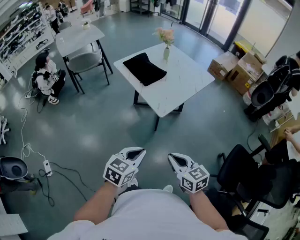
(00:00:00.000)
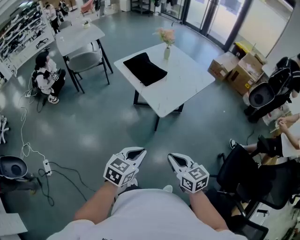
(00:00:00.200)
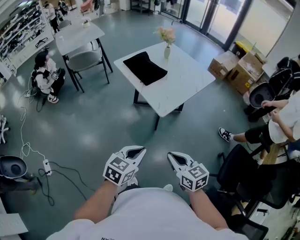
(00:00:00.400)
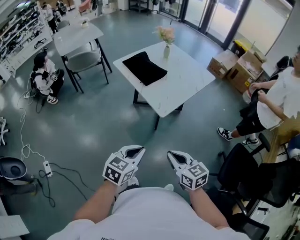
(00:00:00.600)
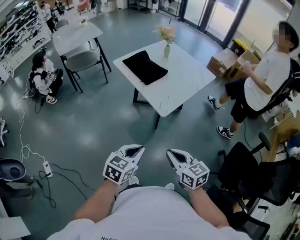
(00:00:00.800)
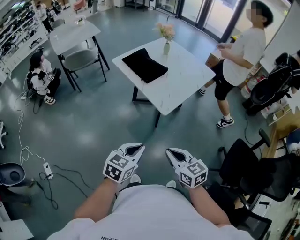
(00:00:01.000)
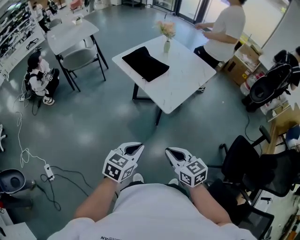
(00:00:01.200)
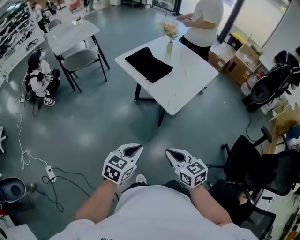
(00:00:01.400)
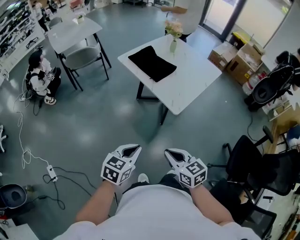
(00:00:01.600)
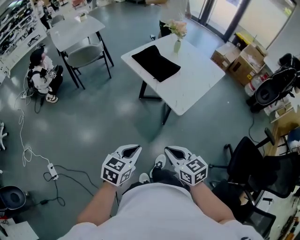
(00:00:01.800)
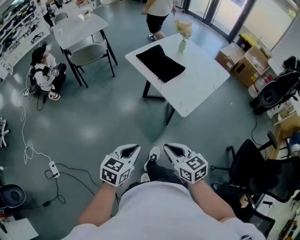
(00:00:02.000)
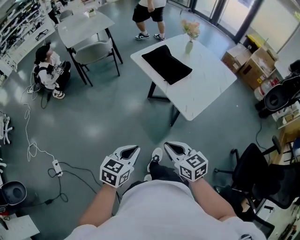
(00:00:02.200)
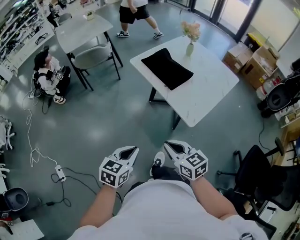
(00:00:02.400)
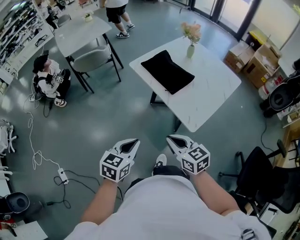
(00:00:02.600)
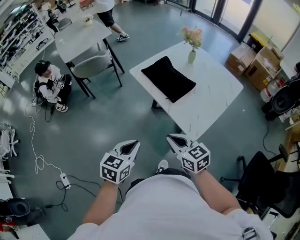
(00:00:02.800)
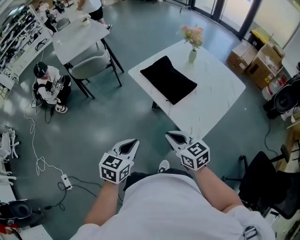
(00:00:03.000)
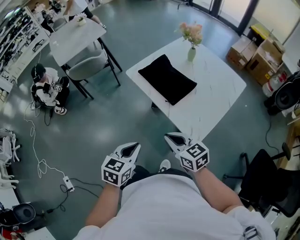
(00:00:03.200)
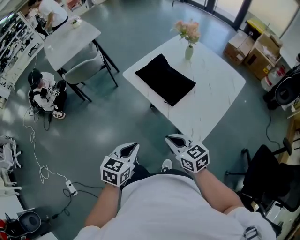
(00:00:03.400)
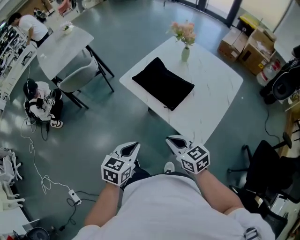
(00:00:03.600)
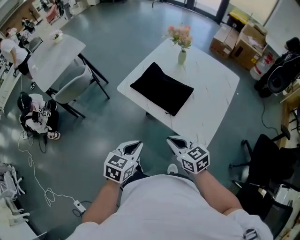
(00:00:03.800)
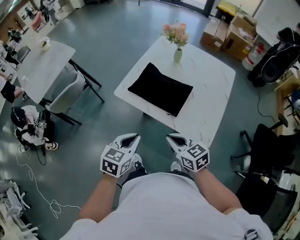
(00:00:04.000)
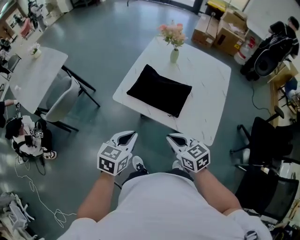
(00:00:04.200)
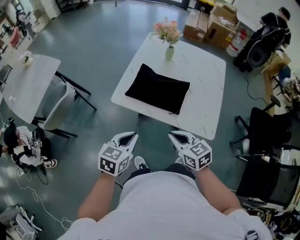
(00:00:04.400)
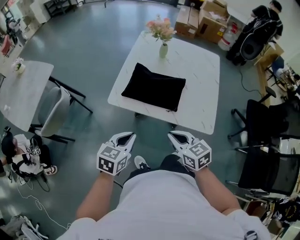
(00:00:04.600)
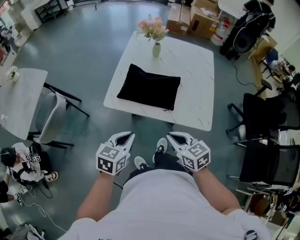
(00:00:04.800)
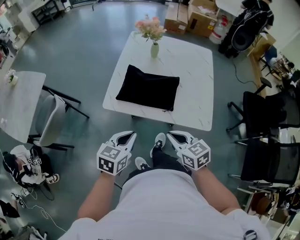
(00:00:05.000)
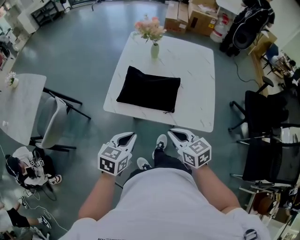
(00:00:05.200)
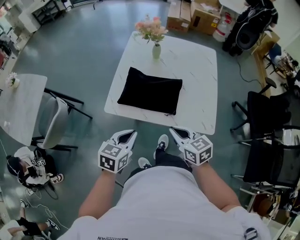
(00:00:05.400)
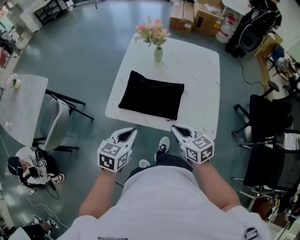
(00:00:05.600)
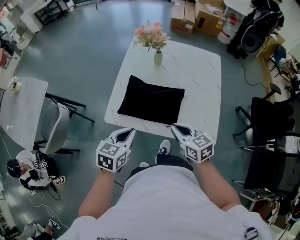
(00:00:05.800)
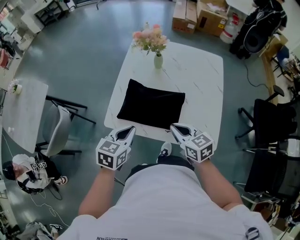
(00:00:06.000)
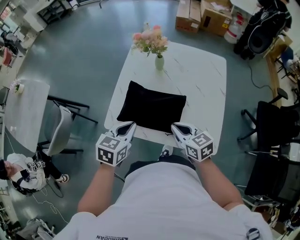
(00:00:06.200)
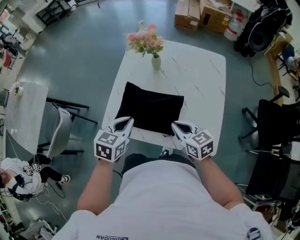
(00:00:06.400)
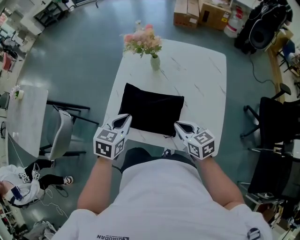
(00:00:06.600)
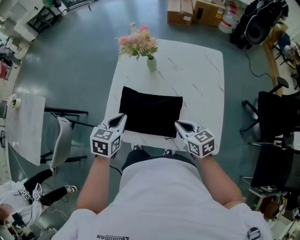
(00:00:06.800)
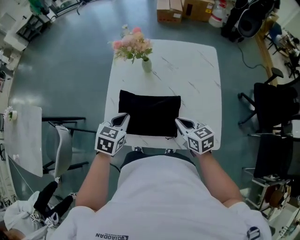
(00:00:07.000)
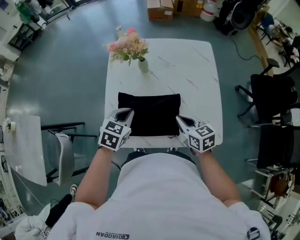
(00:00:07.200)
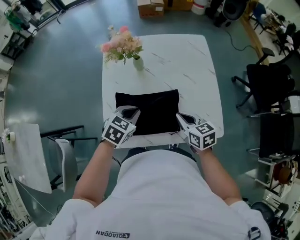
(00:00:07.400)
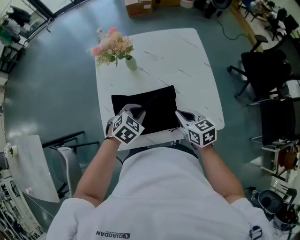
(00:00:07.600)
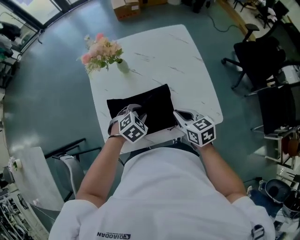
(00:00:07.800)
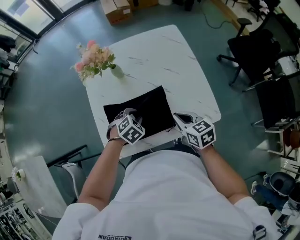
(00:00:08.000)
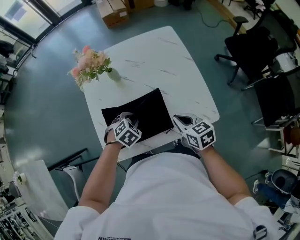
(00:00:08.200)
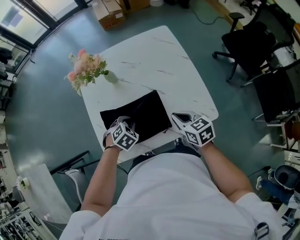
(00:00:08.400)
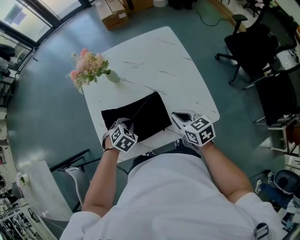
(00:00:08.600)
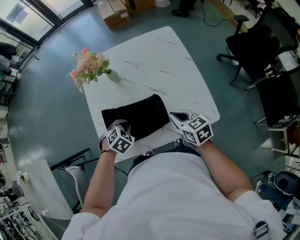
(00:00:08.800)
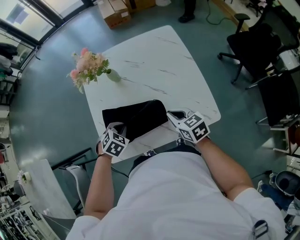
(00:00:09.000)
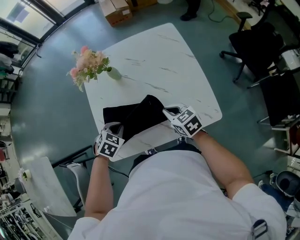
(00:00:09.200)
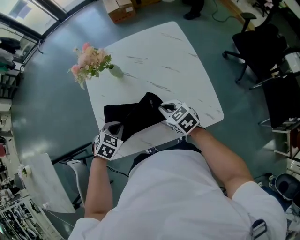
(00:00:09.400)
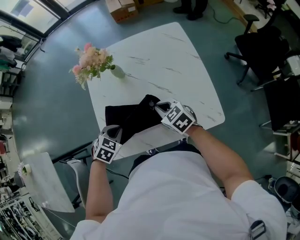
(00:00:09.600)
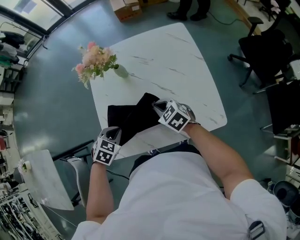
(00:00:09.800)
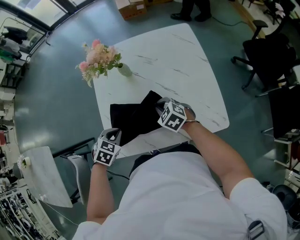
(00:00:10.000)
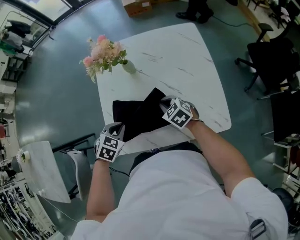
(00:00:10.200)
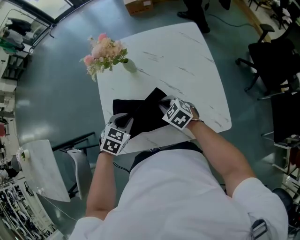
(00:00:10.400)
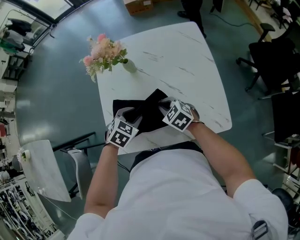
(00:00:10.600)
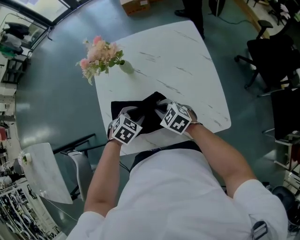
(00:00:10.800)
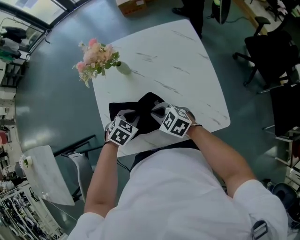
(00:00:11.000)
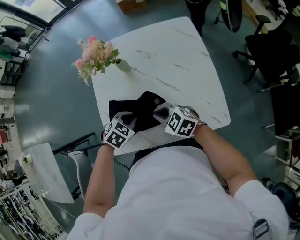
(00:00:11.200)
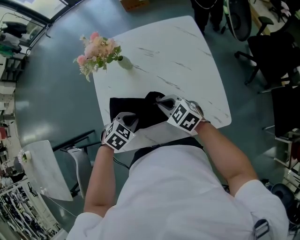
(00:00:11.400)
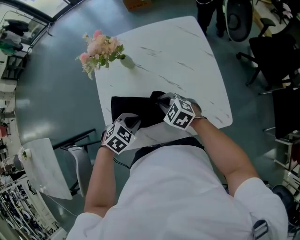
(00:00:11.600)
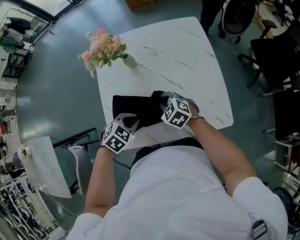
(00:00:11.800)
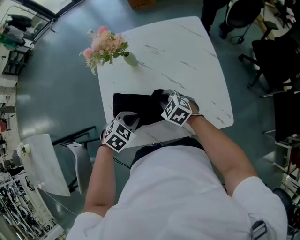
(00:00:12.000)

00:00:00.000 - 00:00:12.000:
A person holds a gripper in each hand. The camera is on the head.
00:00:00.000 - 00:00:01.600: Both grippers travel together to the left, roughly 15 cm.
00:00:01.600 - 00:00:03.000: Both grippers move forward, approximately 25 cm.
00:00:03.000 - 00:00:04.400: The left gripper shifts by roughly 25 cm, and rotates about 30 degrees; the right gripper ends up some 20 cm from where it was, and rotates approximately 30 degrees.
00:00:04.400 - 00:00:06.000: The two grippers go about 15 cm forward.
00:00:06.000 - 00:00:07.600: The right gripper moves roughly 10 cm, and changes its angle by approximately 30 degrees; the left gripper moves approximately 15 cm, and rolls clockwise, seen from behind, by approximately 40 degrees.
00:00:07.600 - 00:00:09.000: The left gripper shifts by some 5 cm, and opens and closes again.
00:00:09.000 - 00:00:10.400: The right gripper moves to the left and forward, some 10 cm, and swivels about 30 degrees.
00:00:10.400 - 00:00:12.000: The left gripper opens and closes again.

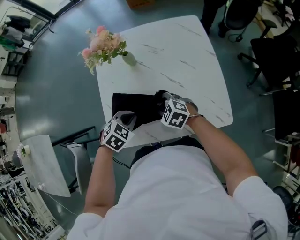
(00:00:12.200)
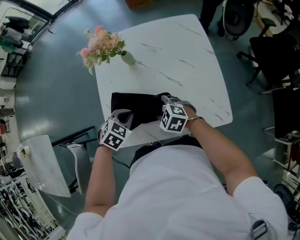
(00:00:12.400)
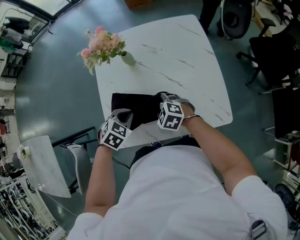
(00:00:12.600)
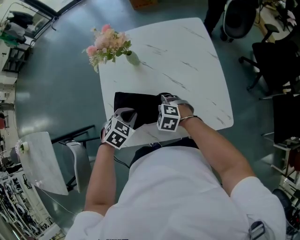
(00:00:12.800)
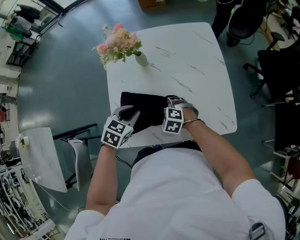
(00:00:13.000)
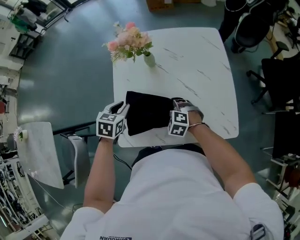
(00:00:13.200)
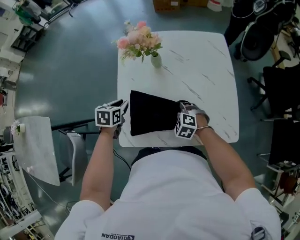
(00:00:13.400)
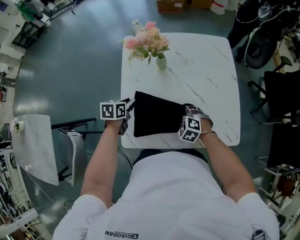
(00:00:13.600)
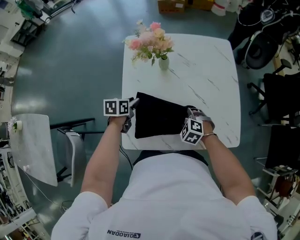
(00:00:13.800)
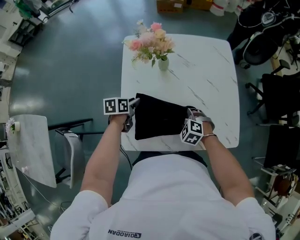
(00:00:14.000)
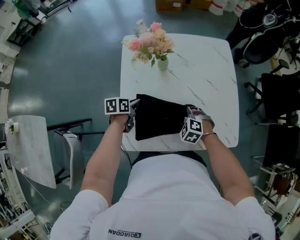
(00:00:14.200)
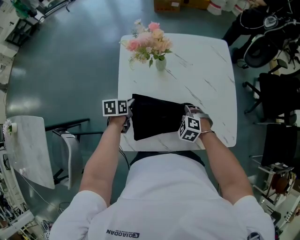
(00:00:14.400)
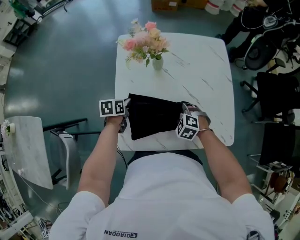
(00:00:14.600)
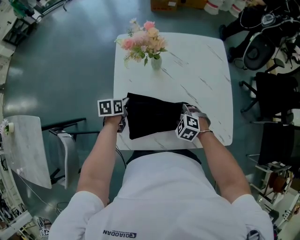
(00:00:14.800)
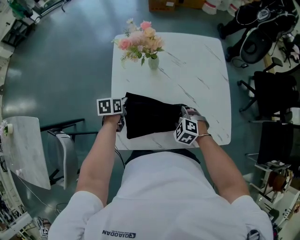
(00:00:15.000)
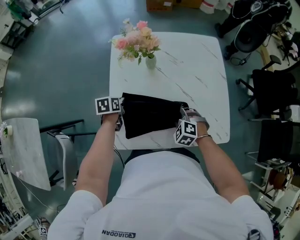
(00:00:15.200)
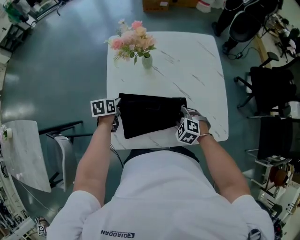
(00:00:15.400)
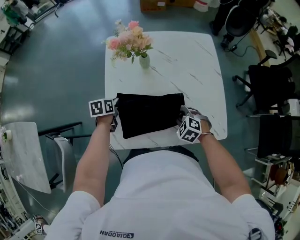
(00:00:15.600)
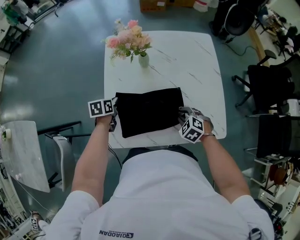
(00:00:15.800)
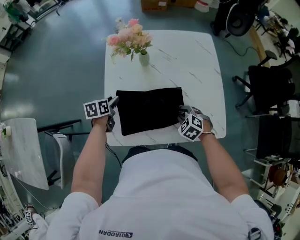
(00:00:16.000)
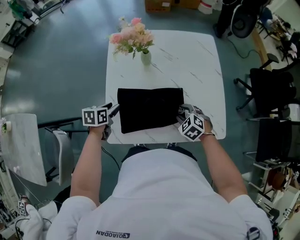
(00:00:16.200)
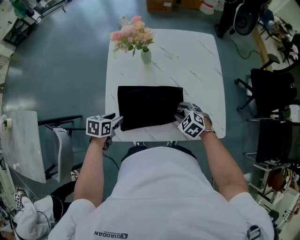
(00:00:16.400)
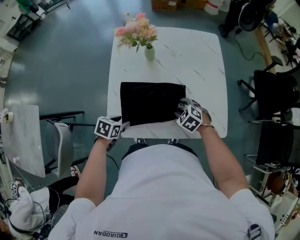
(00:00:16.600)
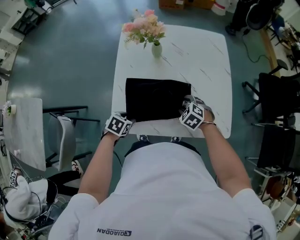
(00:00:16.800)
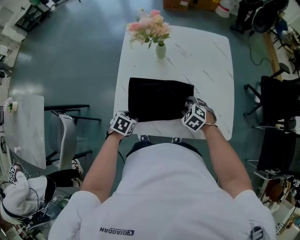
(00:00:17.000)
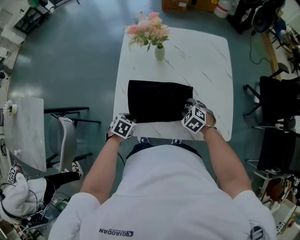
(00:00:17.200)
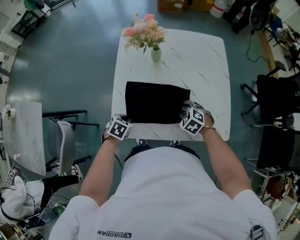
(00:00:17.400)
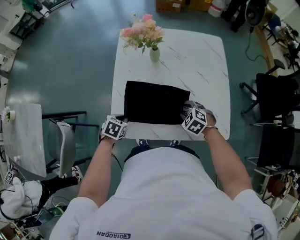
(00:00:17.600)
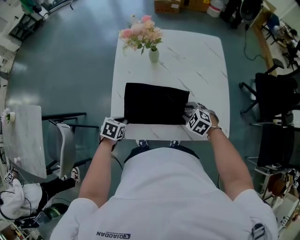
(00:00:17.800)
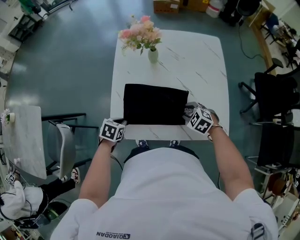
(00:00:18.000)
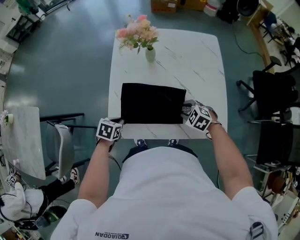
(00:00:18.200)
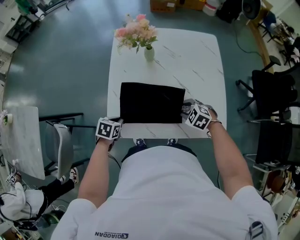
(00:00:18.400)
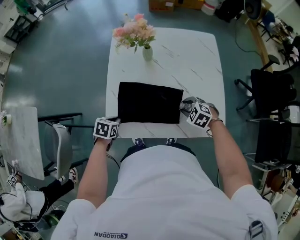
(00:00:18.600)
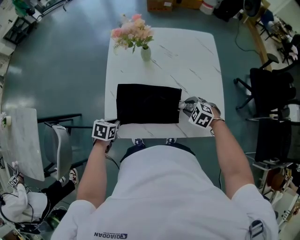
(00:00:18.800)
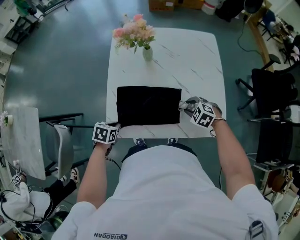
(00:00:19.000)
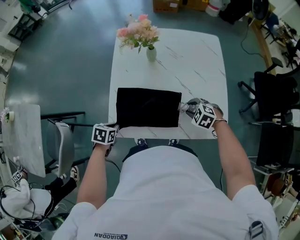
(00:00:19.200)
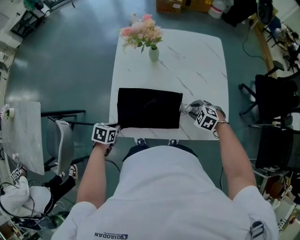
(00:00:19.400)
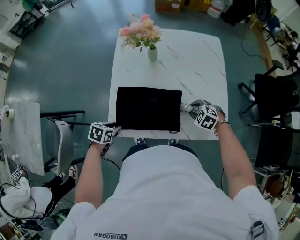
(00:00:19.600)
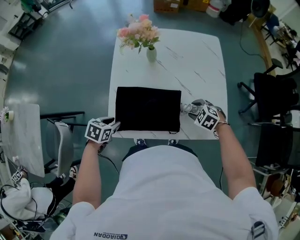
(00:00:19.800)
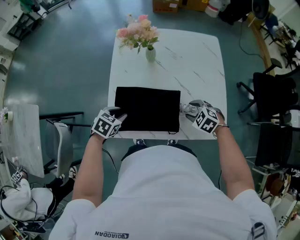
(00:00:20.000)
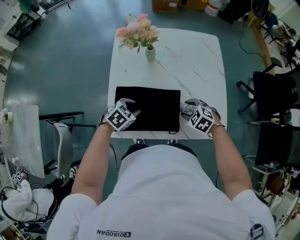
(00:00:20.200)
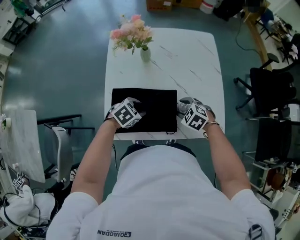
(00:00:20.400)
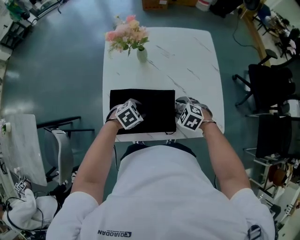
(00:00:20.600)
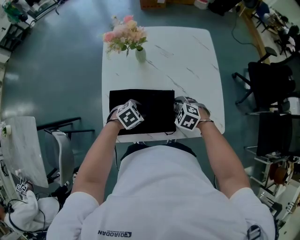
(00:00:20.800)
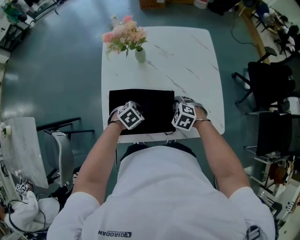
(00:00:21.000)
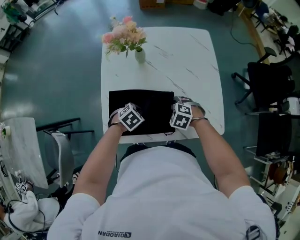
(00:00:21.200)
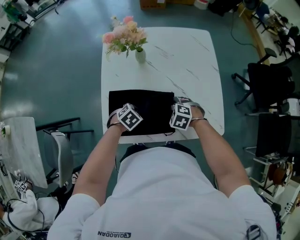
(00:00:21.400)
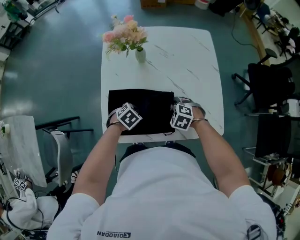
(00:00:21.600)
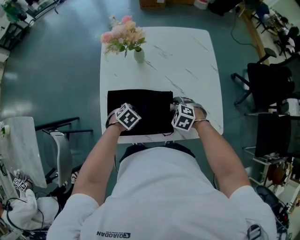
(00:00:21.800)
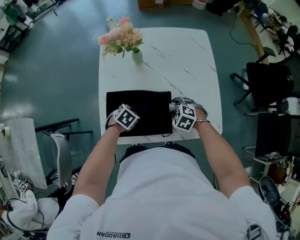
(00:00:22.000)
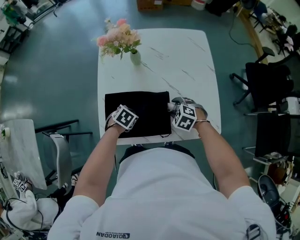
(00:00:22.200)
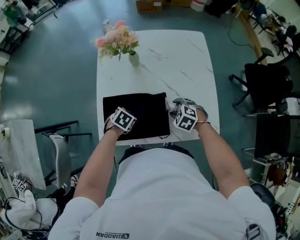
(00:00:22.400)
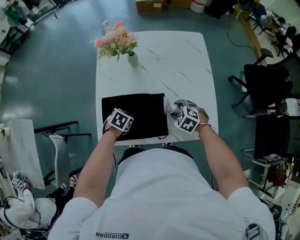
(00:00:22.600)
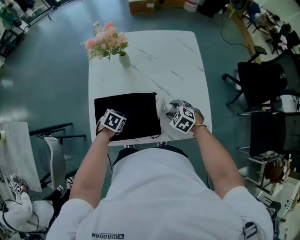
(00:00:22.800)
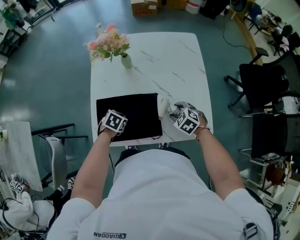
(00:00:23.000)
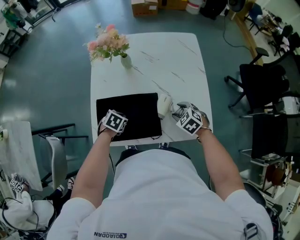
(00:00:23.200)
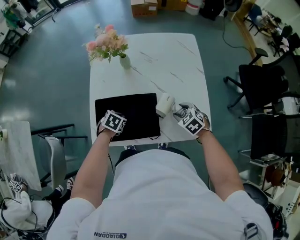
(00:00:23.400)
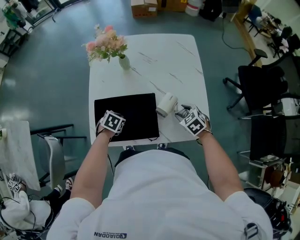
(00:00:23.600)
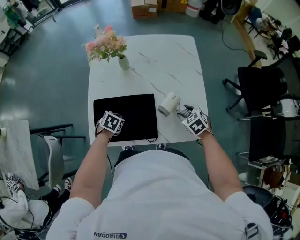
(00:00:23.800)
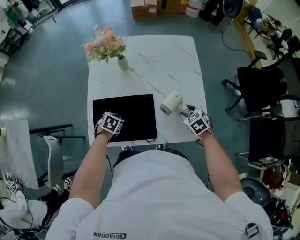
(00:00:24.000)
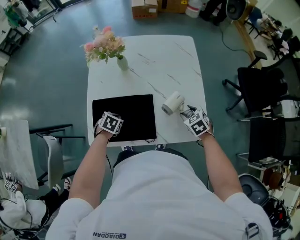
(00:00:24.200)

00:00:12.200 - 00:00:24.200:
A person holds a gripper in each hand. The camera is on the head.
00:00:12.200 - 00:00:13.800: The right gripper changes its angle by approximately 20 degrees, while the left gripper moves forward, to the left and downward, approximately 20 cm, rolls counterclockwise, seen from behind, by roughly 60 degrees, and opens its fingers.
00:00:13.800 - 00:00:15.200: The left gripper closes its fingers.
00:00:15.200 - 00:00:16.600: The right gripper opens its fingers; the left gripper goes some 20 cm backward, swivels some 20 degrees, and opens its fingers.
00:00:16.600 - 00:00:18.200: The left gripper closes its fingers.
00:00:18.200 - 00:00:19.800: The left gripper opens up, while the right gripper is displaced to the right by some 5 cm.
00:00:19.800 - 00:00:21.200: The left gripper changes place by approximately 15 cm, changes its angle by about 30 degrees, and closes up, while the right gripper shifts by approximately 10 cm.
00:00:21.200 - 00:00:22.600: The right gripper moves to the right, about 5 cm. The left gripper turns by about 20 degrees.
00:00:22.600 - 00:00:24.200: The right gripper heads to the right, covering approximately 10 cm, and rotates roughly 30 degrees.
